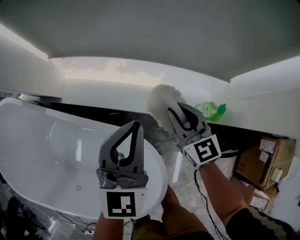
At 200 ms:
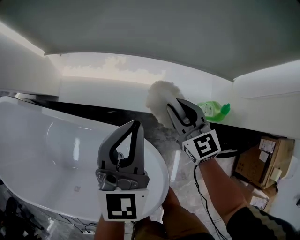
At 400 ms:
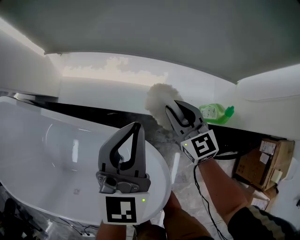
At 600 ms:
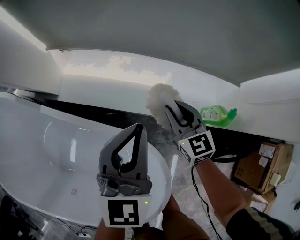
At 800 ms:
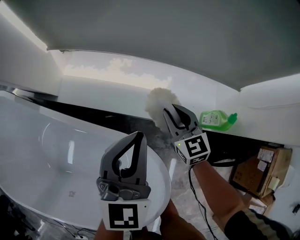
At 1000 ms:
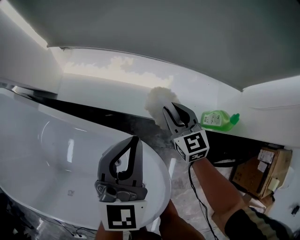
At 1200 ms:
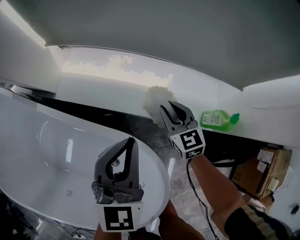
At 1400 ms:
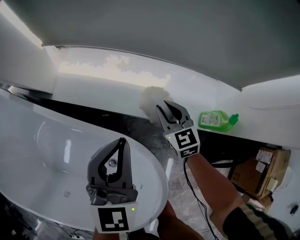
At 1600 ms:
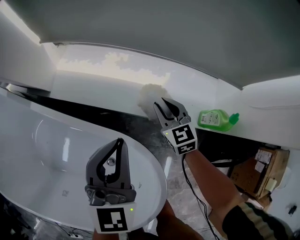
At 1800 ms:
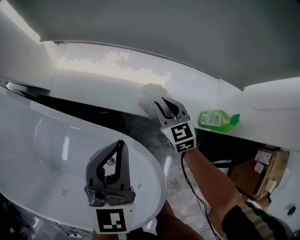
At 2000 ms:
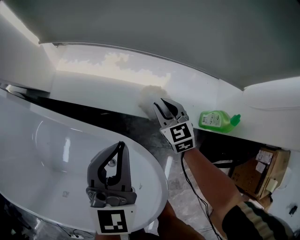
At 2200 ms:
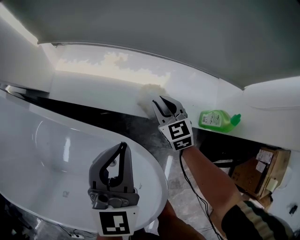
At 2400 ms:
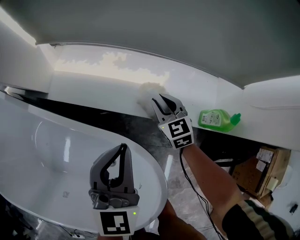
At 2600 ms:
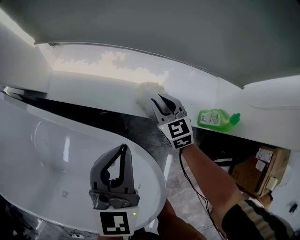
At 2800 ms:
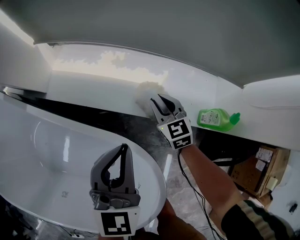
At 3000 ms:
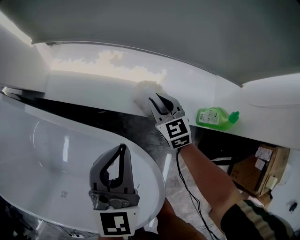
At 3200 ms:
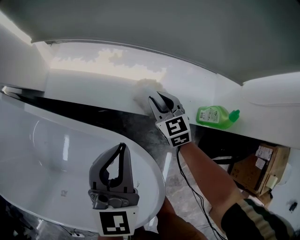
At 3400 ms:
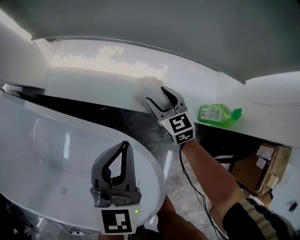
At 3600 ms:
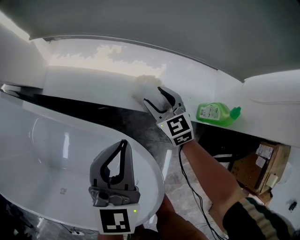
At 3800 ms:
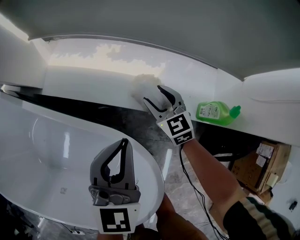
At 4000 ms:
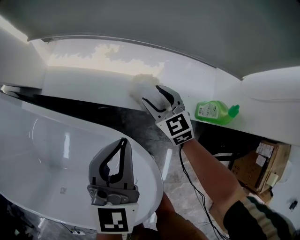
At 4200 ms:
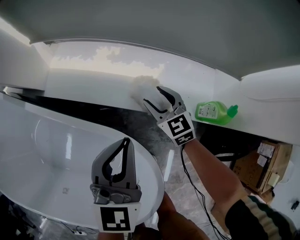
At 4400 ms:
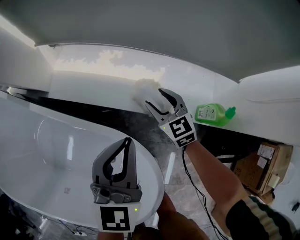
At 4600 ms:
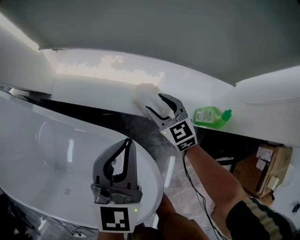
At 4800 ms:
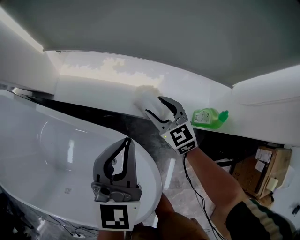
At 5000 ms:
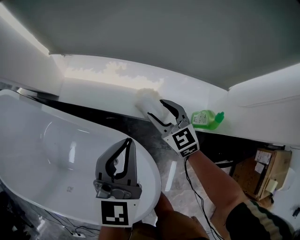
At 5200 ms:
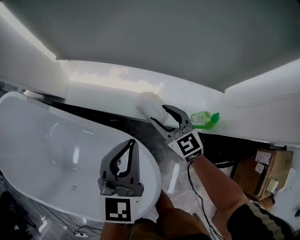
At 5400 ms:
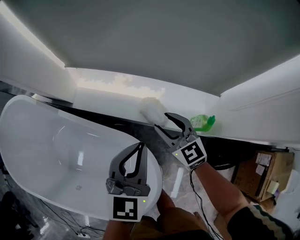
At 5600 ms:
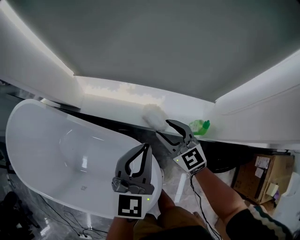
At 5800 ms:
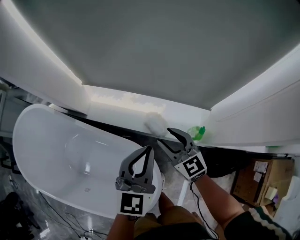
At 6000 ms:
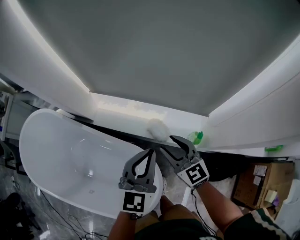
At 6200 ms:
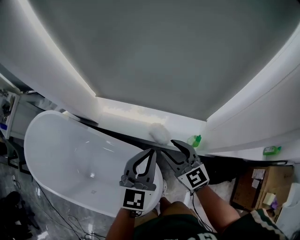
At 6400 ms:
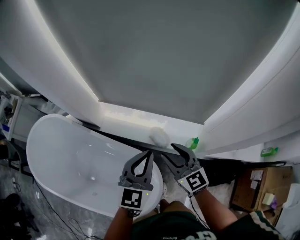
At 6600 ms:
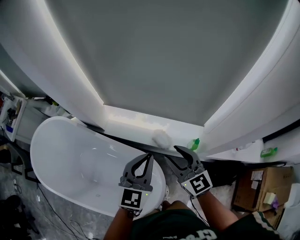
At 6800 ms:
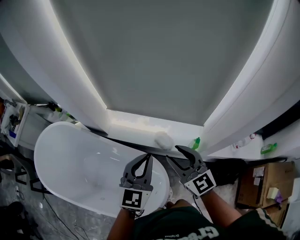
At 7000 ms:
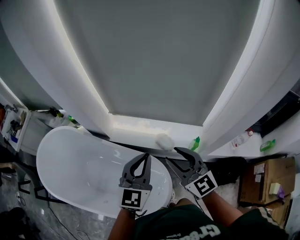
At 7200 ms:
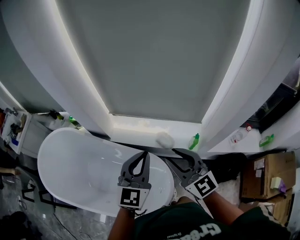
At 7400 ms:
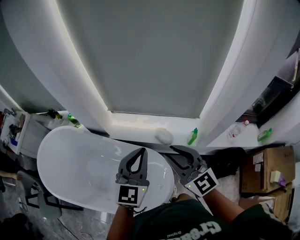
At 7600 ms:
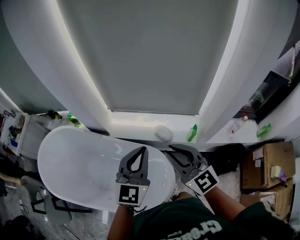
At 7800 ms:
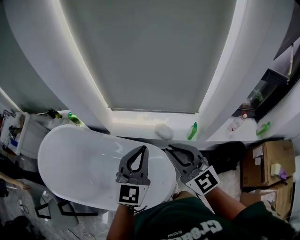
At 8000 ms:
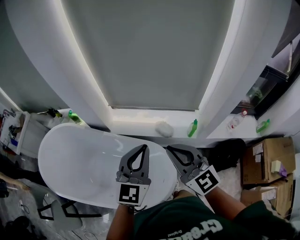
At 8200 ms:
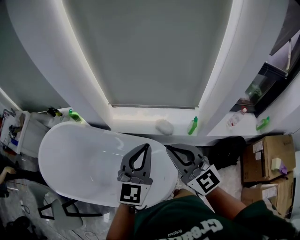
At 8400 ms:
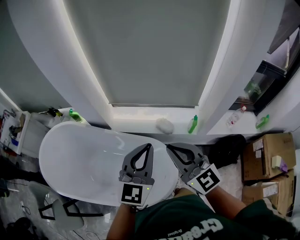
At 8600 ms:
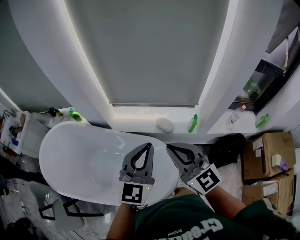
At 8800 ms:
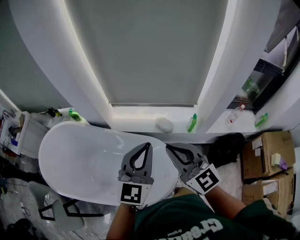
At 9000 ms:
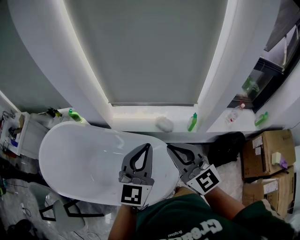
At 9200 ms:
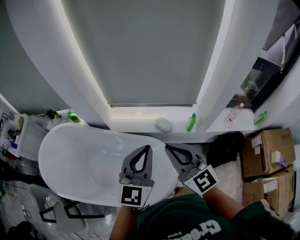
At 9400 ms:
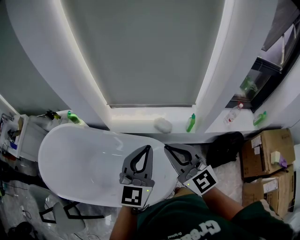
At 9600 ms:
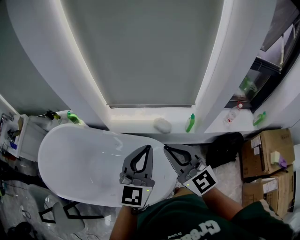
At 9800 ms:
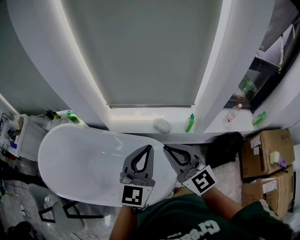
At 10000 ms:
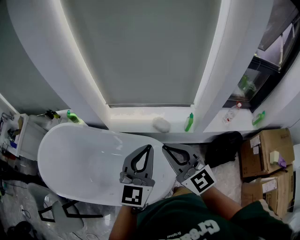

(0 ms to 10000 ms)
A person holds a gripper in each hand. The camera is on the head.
0 ms - 1400 ms: The left gripper heads downward and to the left, covering about 10 cm. Meanwhile the right gripper moves downward, approximately 15 cm.
1400 ms - 2800 ms: The grippers move only a little.
2800 ms - 4200 ms: The right gripper opens up.
4200 ms - 5800 ms: The two grippers go approximately 25 cm upward.
5800 ms - 7200 ms: The right gripper heads upward and backward, covering about 30 cm. The left gripper is displaced upward, backward and to the left by roughly 20 cm.
7200 ms - 8600 ms: The left gripper travels backward by some 10 cm. The right gripper goes some 10 cm backward and to the left, and closes its fingers.
8600 ms - 10000 ms: The grippers stay close to where they were, moving slightly.

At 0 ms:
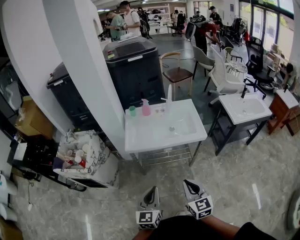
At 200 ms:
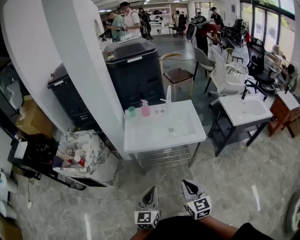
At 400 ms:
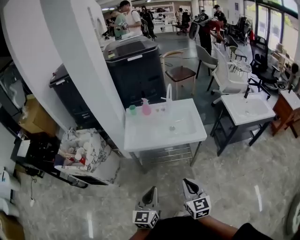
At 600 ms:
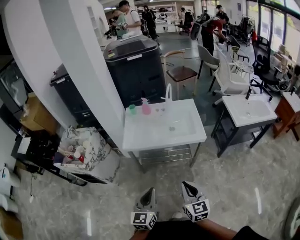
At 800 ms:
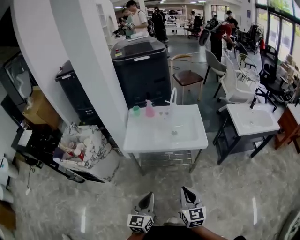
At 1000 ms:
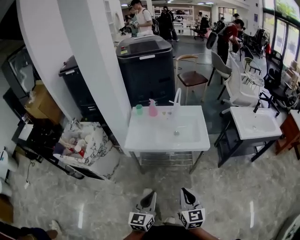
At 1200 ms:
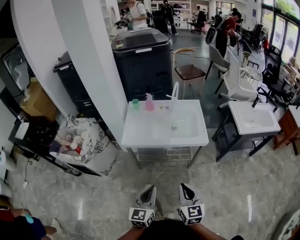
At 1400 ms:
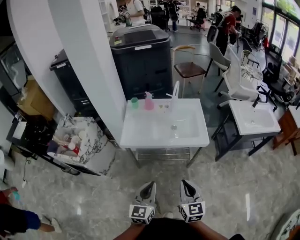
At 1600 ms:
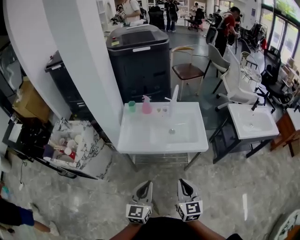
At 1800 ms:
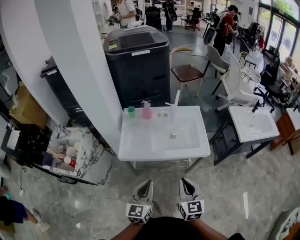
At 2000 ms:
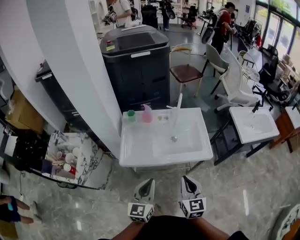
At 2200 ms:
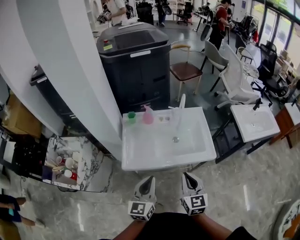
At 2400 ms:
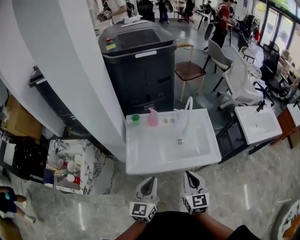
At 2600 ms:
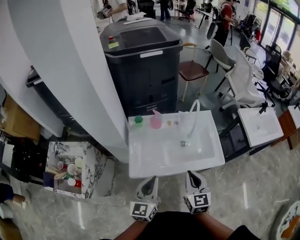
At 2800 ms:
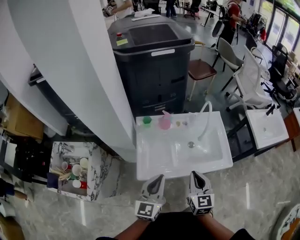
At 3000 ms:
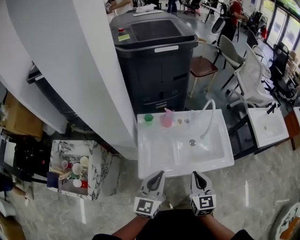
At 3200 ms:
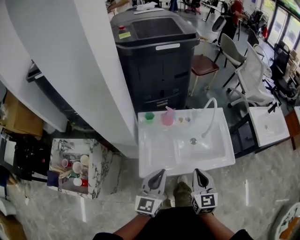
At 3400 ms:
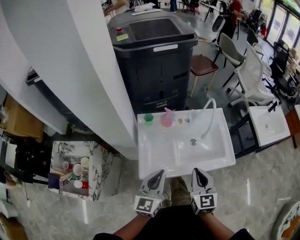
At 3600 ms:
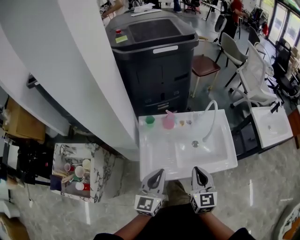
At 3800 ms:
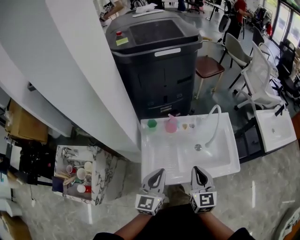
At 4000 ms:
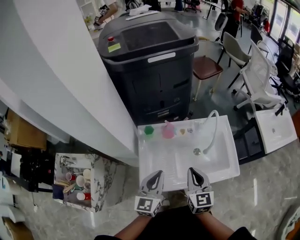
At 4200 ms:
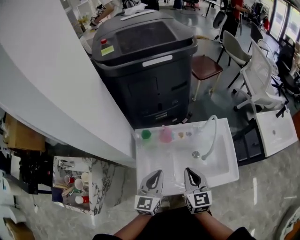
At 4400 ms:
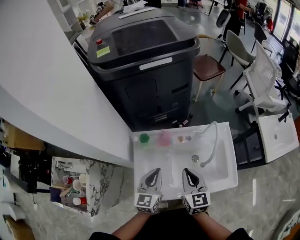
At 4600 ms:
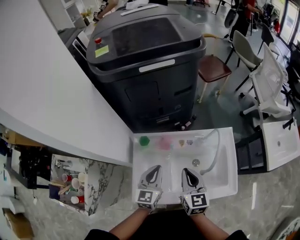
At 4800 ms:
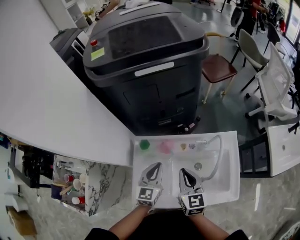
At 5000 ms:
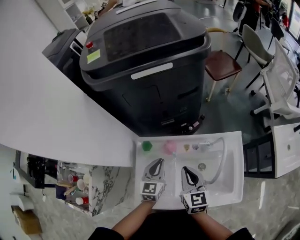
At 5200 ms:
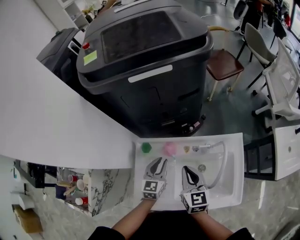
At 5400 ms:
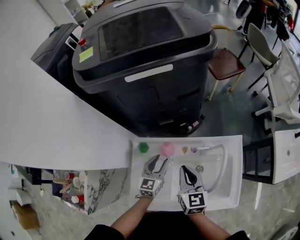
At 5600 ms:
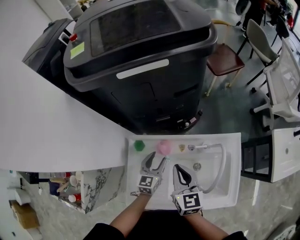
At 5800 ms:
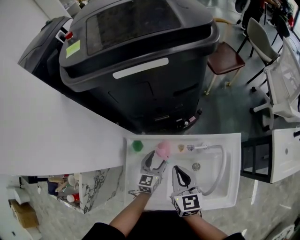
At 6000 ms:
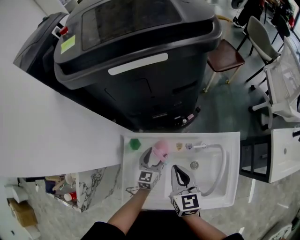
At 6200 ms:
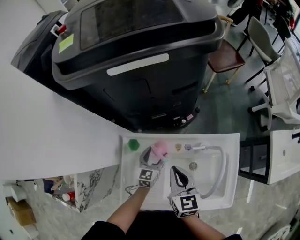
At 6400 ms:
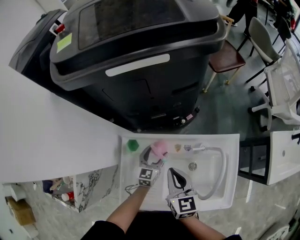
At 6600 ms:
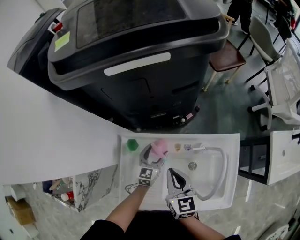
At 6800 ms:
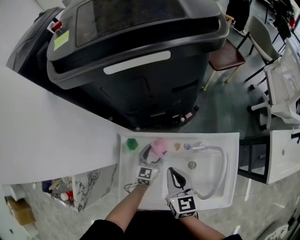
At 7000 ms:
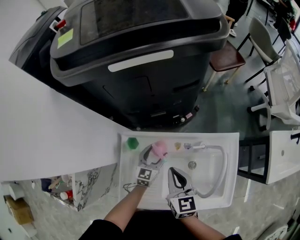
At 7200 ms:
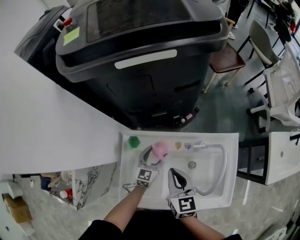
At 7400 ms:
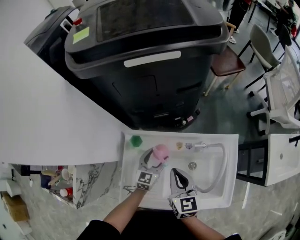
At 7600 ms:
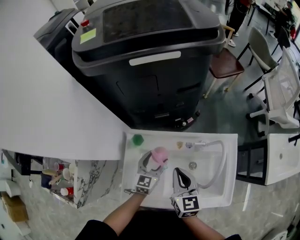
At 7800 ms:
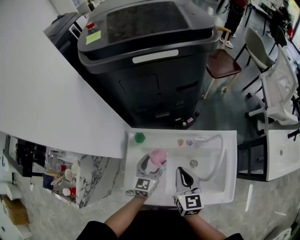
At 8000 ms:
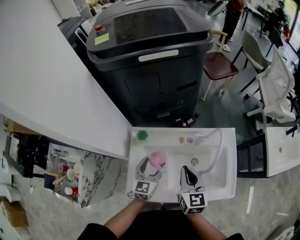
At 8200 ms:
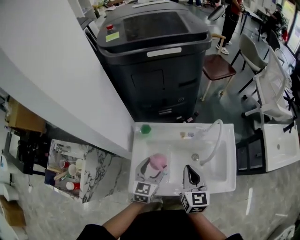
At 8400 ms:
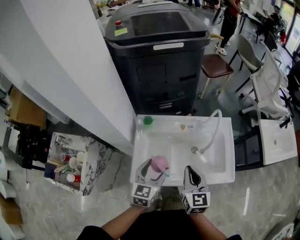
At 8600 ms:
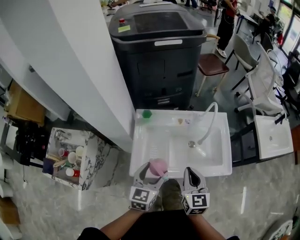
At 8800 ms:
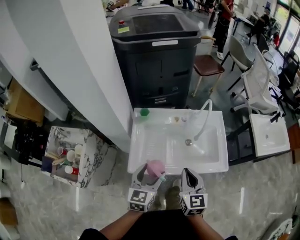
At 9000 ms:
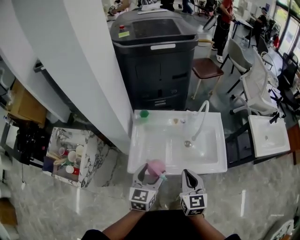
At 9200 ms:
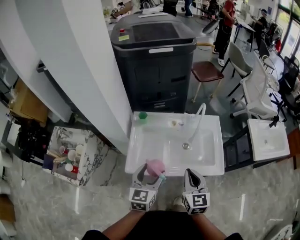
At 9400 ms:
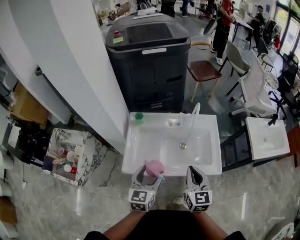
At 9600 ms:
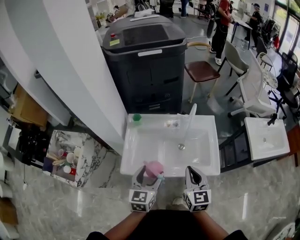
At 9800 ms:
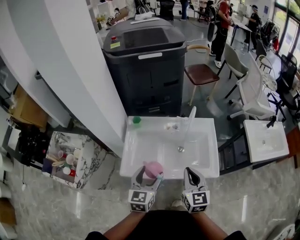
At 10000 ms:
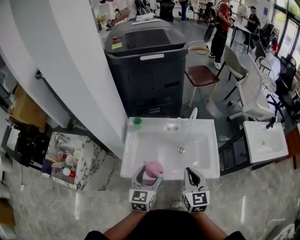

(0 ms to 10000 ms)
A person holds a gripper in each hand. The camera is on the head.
0 ms - 1400 ms: The two grippers go approximately 10 cm forward and to the right.
1400 ms - 2800 ms: Both grippers travel together forward and to the left, approximately 35 cm.
2800 ms - 4200 ms: Both grippers move forward, some 15 cm.
4200 ms - 5800 ms: The left gripper goes some 30 cm forward and downward, and opens its fingers. The right gripper goes roughly 20 cm forward.
5800 ms - 7200 ms: There are only small adjustments of the grippers.
7200 ms - 8600 ms: The left gripper shifts some 40 cm backward and upward; the right gripper moves backward, roughly 25 cm.
8600 ms - 10000 ms: The two grippers go approximately 5 cm to the right.

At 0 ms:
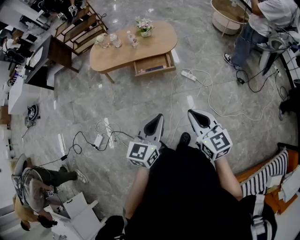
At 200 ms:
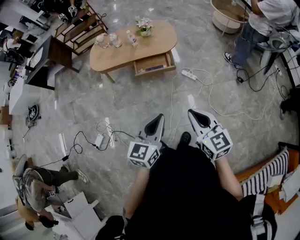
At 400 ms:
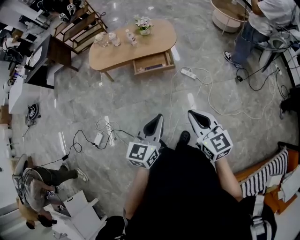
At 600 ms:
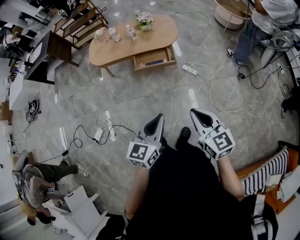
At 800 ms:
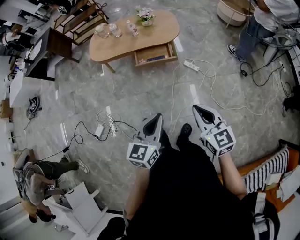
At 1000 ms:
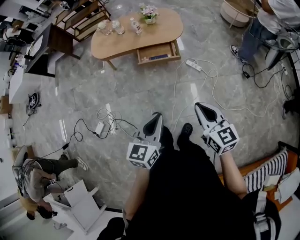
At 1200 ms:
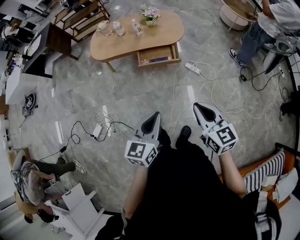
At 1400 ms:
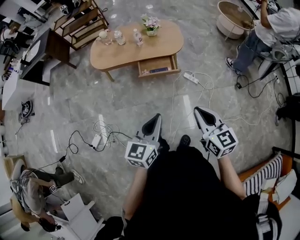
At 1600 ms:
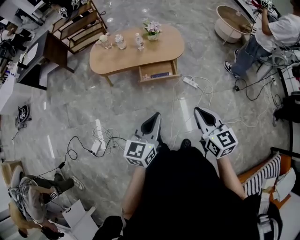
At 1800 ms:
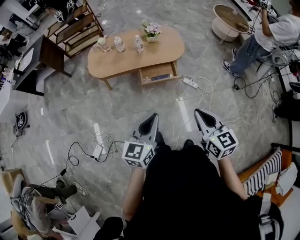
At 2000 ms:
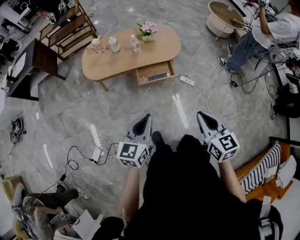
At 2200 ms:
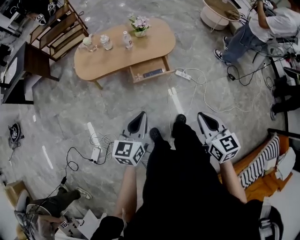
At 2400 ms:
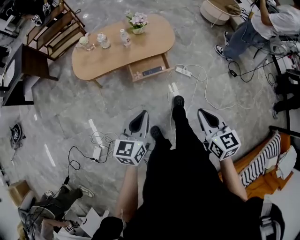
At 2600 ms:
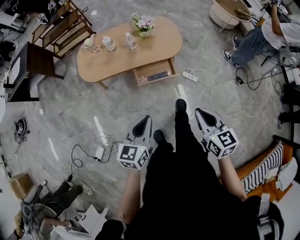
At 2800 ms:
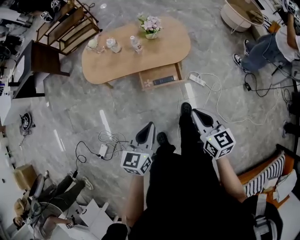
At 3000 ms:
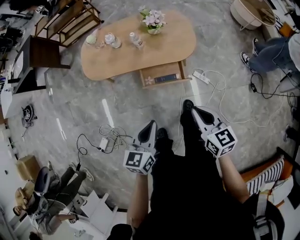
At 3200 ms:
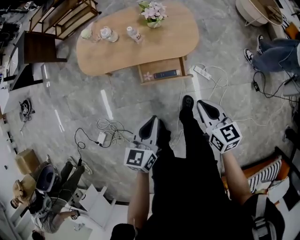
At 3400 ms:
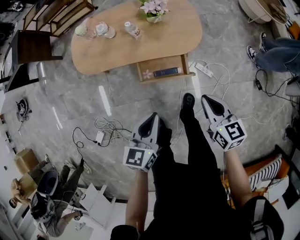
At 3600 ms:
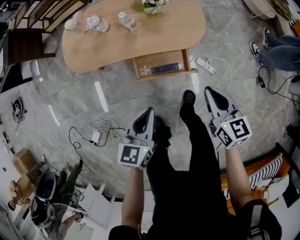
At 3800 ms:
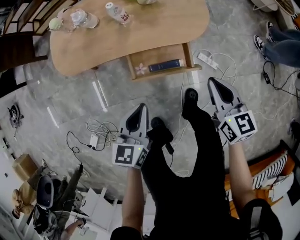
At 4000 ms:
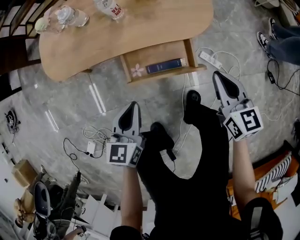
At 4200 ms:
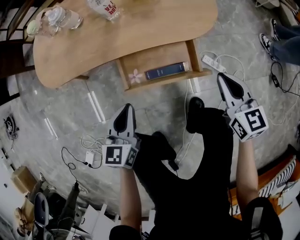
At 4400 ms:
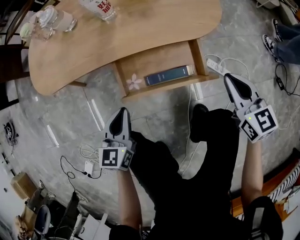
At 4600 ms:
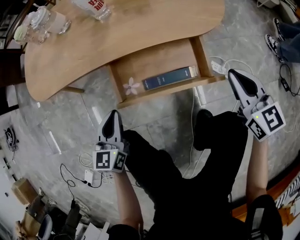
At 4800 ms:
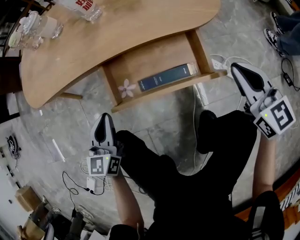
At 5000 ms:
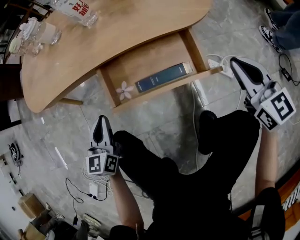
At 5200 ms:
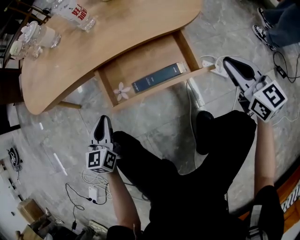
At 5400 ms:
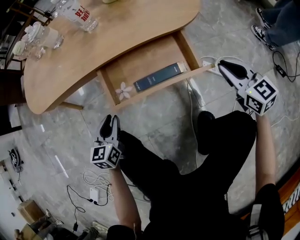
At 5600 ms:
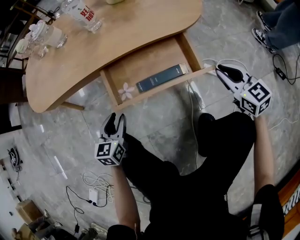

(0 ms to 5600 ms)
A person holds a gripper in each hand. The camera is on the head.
0 ms - 1400 ms: The right gripper shifts approximately 5 cm forward. The left gripper travels to the left and forward by some 10 cm.
1400 ms - 2800 ms: Both grippers travel together forward, roughly 25 cm.
2800 ms - 4200 ms: The two grippers go approximately 40 cm downward and forward.
4200 ms - 5600 ms: The two grippers go some 20 cm downward. The left gripper opens.
